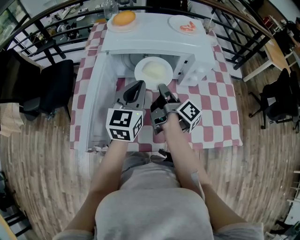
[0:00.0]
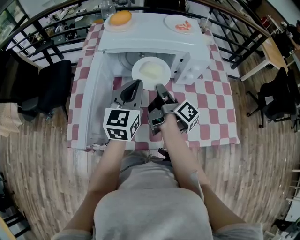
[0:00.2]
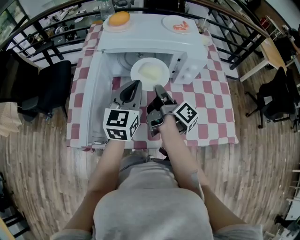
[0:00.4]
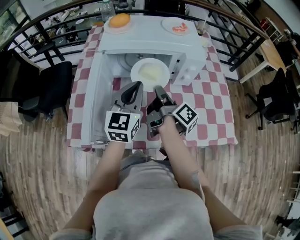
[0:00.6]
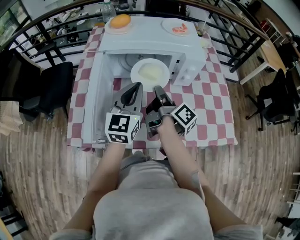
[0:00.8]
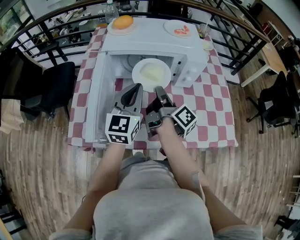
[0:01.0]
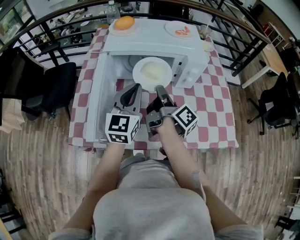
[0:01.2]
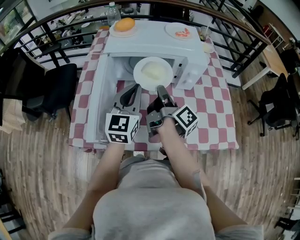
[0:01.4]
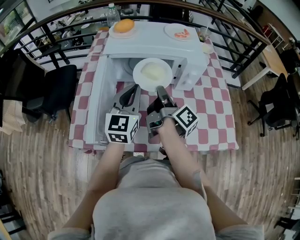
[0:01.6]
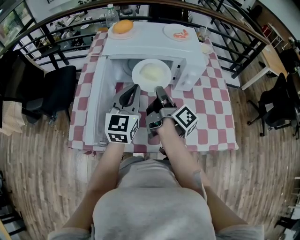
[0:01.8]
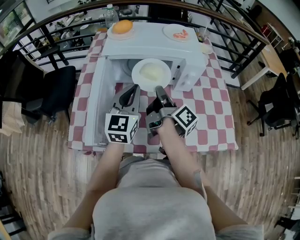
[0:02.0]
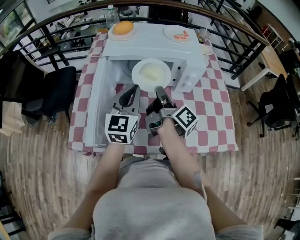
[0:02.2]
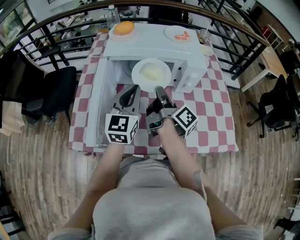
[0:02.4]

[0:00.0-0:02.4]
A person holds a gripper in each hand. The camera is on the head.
0:00.0 to 0:01.2: The right gripper ends up roughly 5 cm from where it was.
0:01.2 to 0:02.4: There are only small adjustments of the grippers.

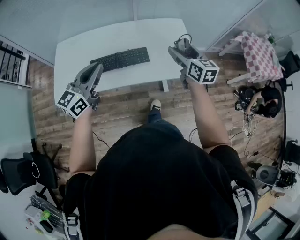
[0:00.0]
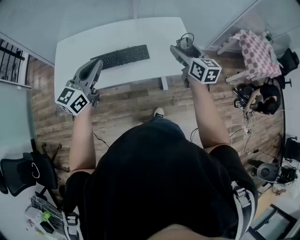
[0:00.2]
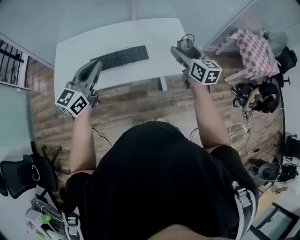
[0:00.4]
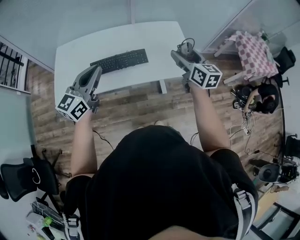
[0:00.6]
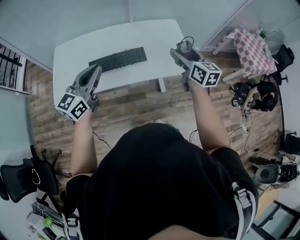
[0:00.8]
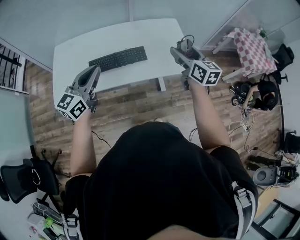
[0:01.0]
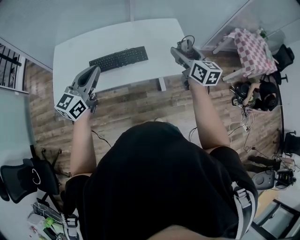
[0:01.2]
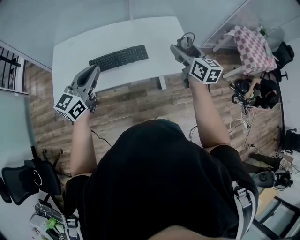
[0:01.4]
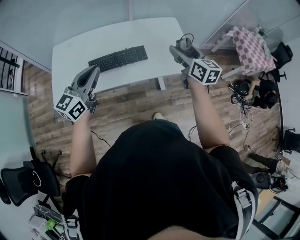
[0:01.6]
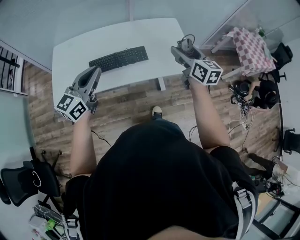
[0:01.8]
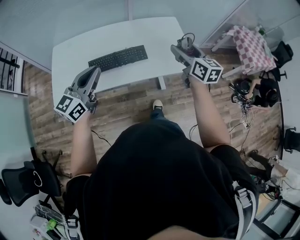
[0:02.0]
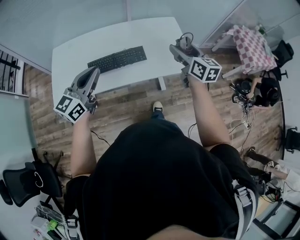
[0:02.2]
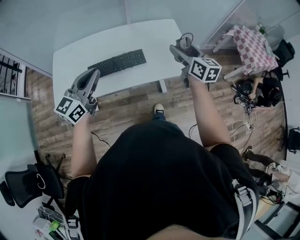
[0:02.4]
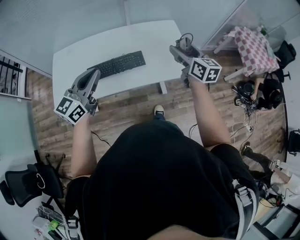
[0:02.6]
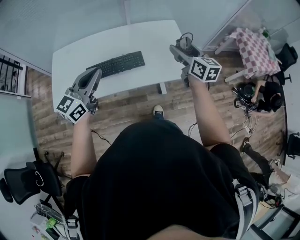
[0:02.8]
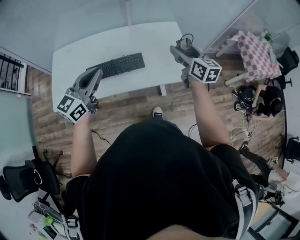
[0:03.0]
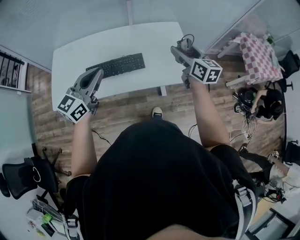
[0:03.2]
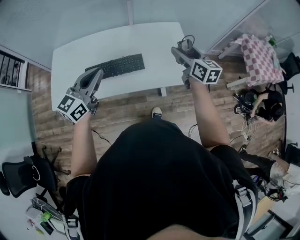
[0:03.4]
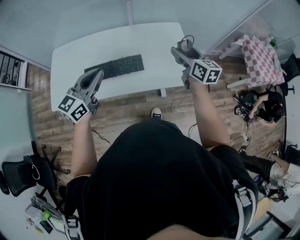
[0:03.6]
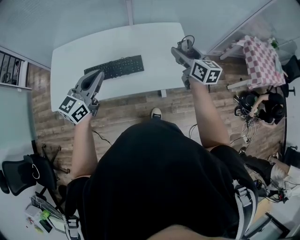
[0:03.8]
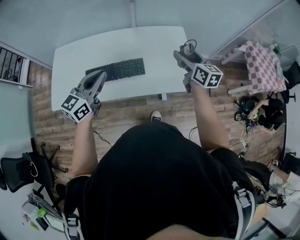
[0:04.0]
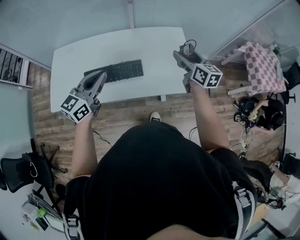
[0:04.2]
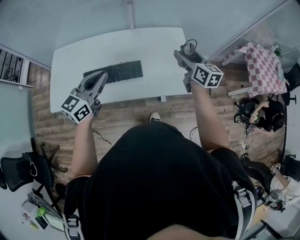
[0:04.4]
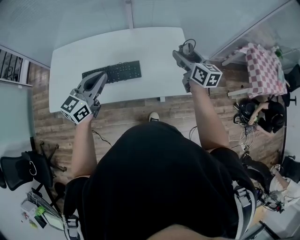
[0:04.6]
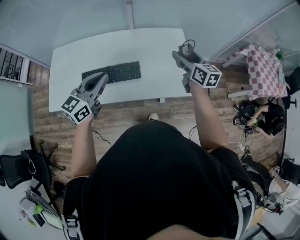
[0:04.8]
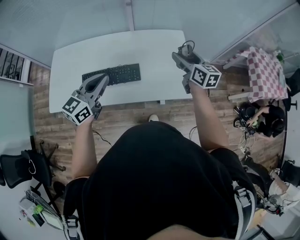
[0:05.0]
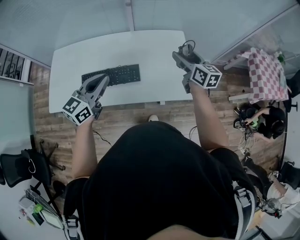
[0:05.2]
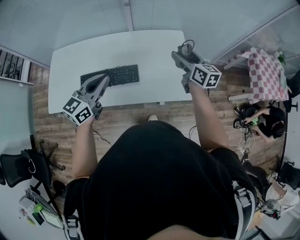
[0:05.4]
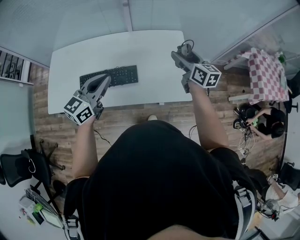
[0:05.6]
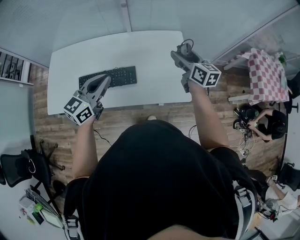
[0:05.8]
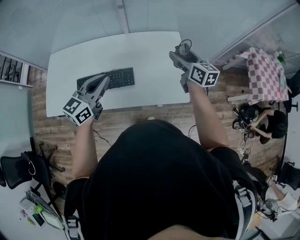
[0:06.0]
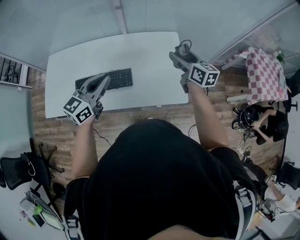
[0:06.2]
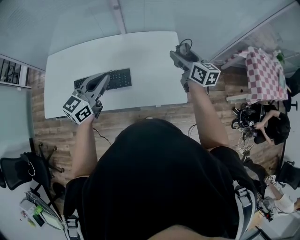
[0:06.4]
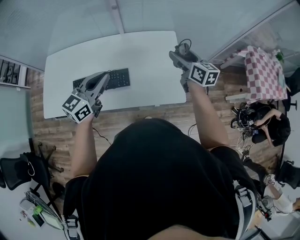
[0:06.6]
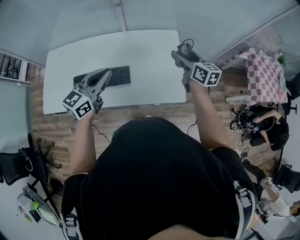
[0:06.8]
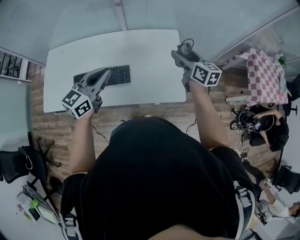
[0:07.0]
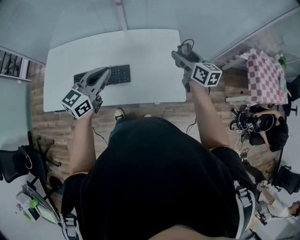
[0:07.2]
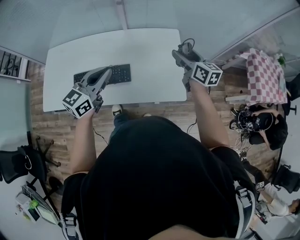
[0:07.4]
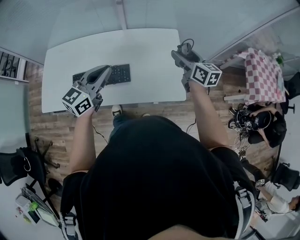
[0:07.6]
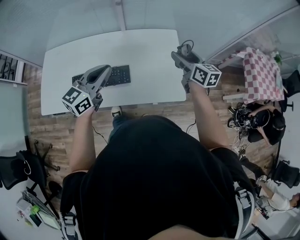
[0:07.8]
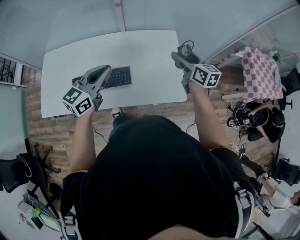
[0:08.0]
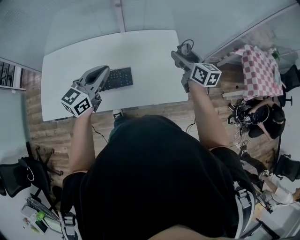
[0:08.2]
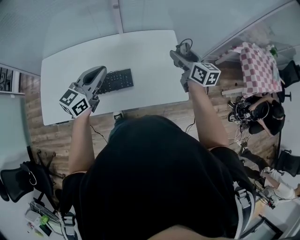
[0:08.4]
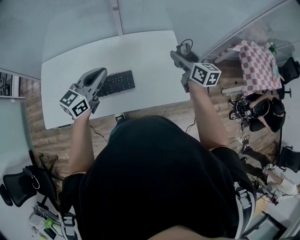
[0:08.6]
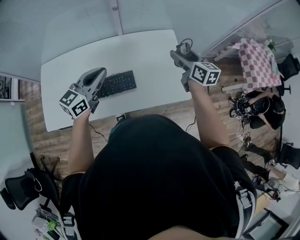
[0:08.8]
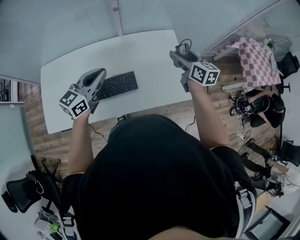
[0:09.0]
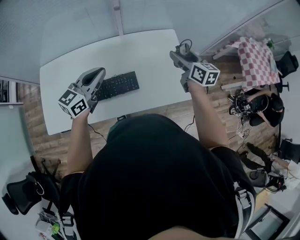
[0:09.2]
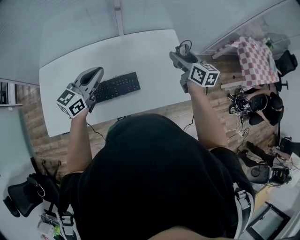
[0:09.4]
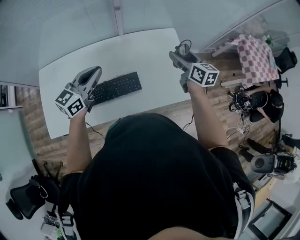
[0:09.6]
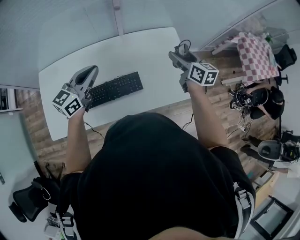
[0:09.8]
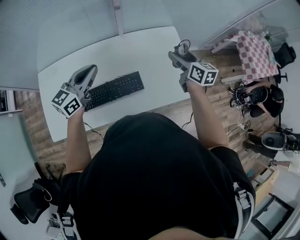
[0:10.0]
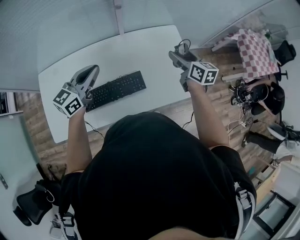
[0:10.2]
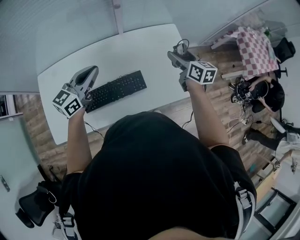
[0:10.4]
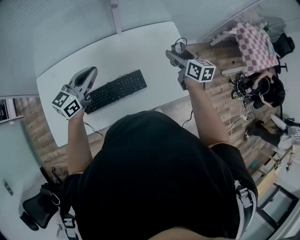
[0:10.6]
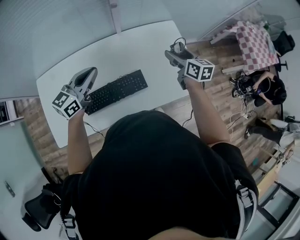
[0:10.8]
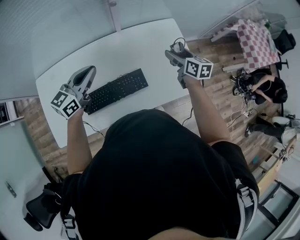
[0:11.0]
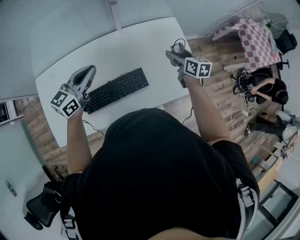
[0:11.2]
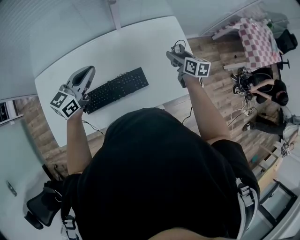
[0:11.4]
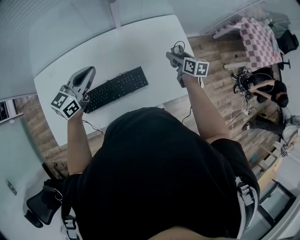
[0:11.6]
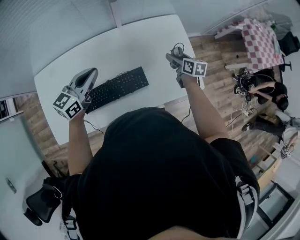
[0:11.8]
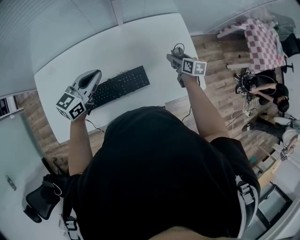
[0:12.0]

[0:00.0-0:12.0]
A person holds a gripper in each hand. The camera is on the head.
0:00.0 to 0:01.6: The right gripper goes approximately 5 cm backward. Meanwhile the left gripper moves some 5 cm.
0:01.6 to 0:03.0: The right gripper goes roughly 10 cm forward and to the right, while the left gripper goes about 10 cm to the right and forward.
0:03.0 to 0:04.4: The left gripper is displaced forward and to the right by some 10 cm. Meanwhile the right gripper goes roughly 10 cm forward.
0:04.4 to 0:06.0: The left gripper shifts some 10 cm to the right and forward. The right gripper is displaced forward by about 10 cm.
0:06.0 to 0:07.6: The grippers move only a little.
0:07.6 to 0:09.0: The left gripper heads to the left and forward, covering about 10 cm, while the right gripper shifts some 5 cm to the left.
0:09.0 to 0:10.4: The right gripper moves to the left, roughly 5 cm. Meanwhile the left gripper goes approximately 10 cm to the left and forward.
0:10.4 to 0:12.0: The left gripper goes some 5 cm downward. The right gripper is displaced downward by approximately 20 cm, and rotates roughly 20 degrees.

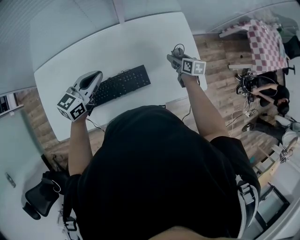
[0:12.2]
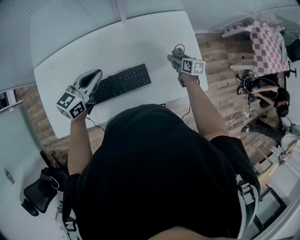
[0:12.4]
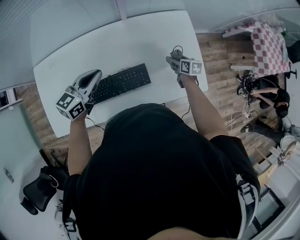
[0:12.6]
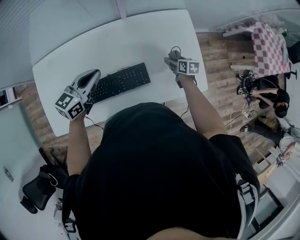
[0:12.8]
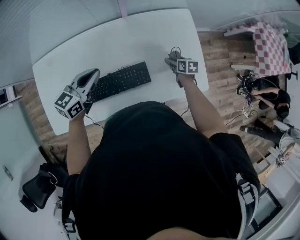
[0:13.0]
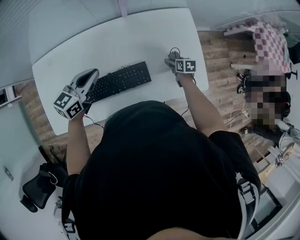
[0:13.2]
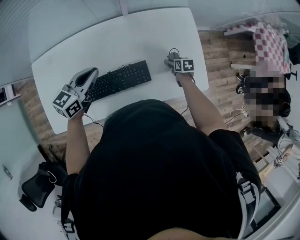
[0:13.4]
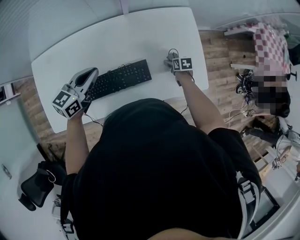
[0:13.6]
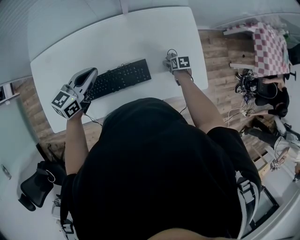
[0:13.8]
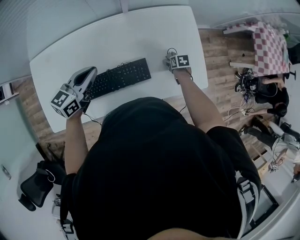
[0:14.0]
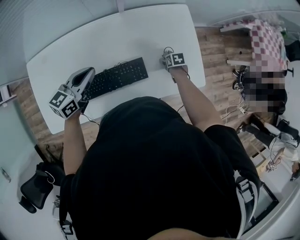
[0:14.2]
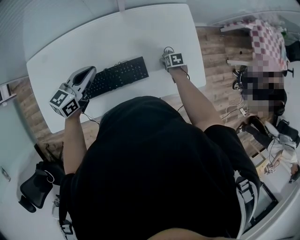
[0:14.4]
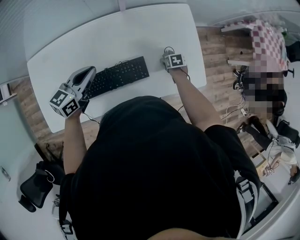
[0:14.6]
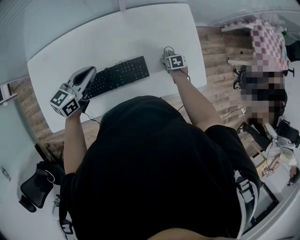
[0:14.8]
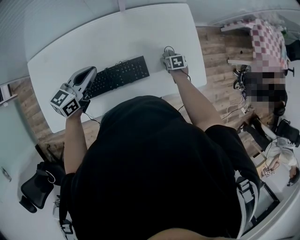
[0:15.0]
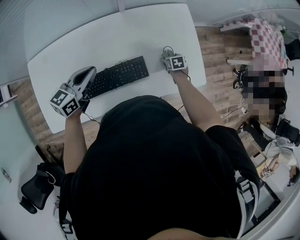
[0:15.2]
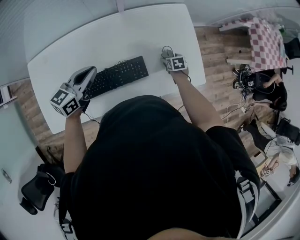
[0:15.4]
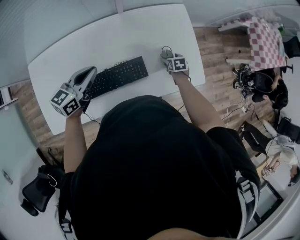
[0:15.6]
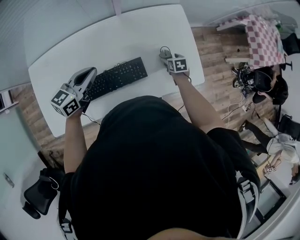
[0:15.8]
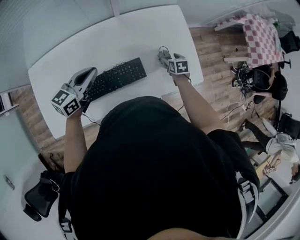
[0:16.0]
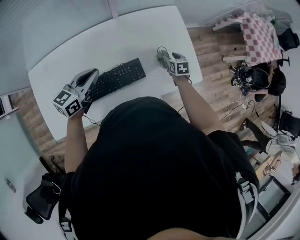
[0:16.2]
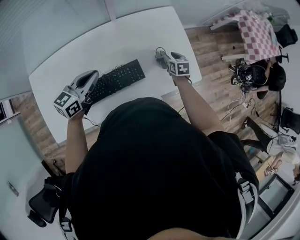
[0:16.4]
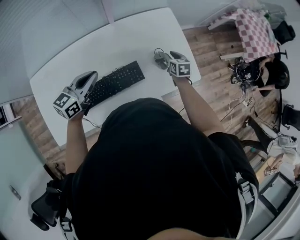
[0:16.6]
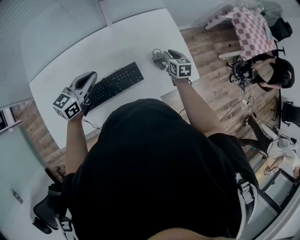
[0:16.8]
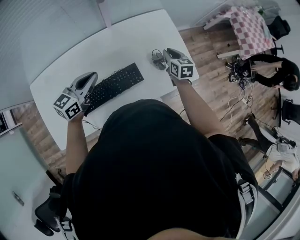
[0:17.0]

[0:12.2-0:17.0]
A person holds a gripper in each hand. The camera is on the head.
0:12.2 to 0:13.8: The right gripper moves downward, about 15 cm, and rotates roughly 30 degrees.
0:13.8 to 0:15.4: The grippers move only a little.
0:15.4 to 0:17.0: The right gripper moves upward, approximately 20 cm, turns by roughly 30 degrees, and closes its fingers. The left gripper shifts by some 5 cm.

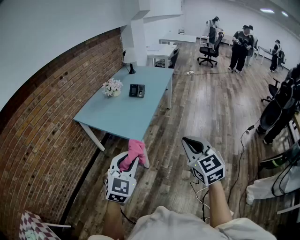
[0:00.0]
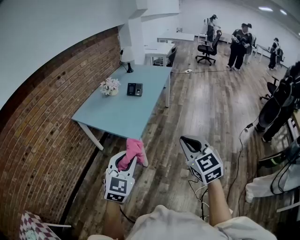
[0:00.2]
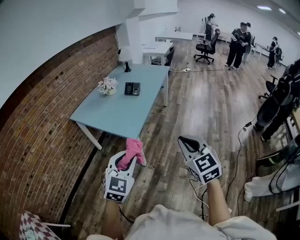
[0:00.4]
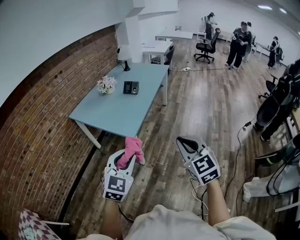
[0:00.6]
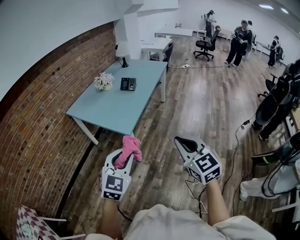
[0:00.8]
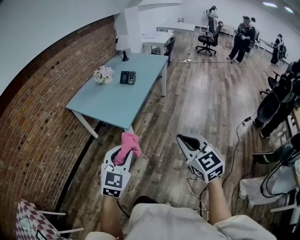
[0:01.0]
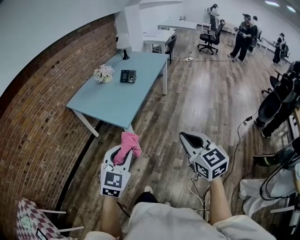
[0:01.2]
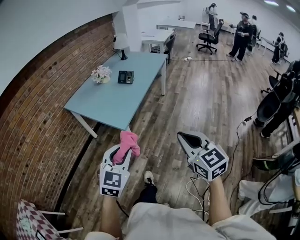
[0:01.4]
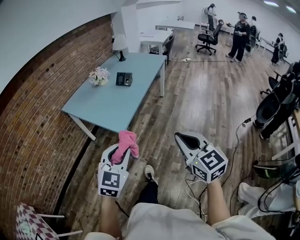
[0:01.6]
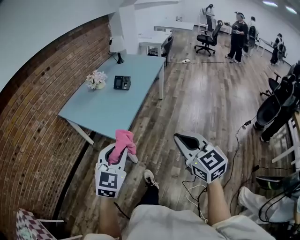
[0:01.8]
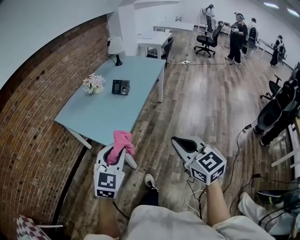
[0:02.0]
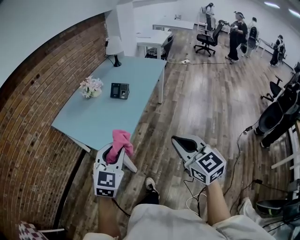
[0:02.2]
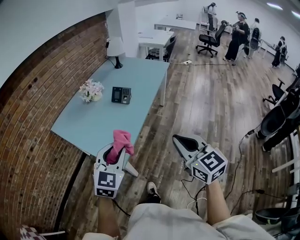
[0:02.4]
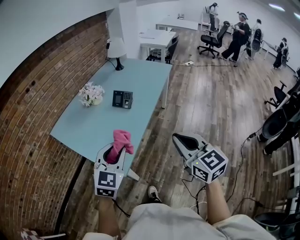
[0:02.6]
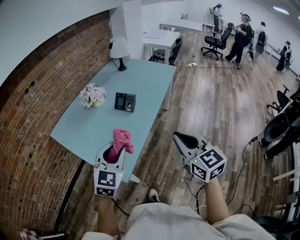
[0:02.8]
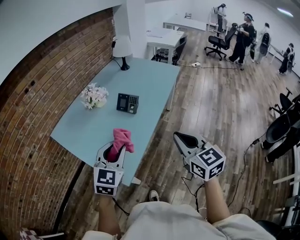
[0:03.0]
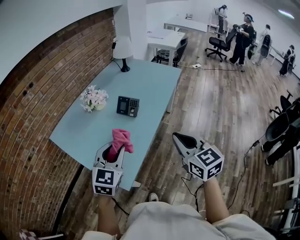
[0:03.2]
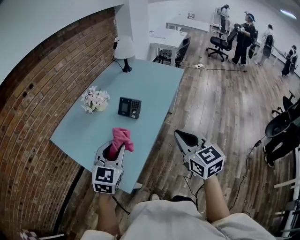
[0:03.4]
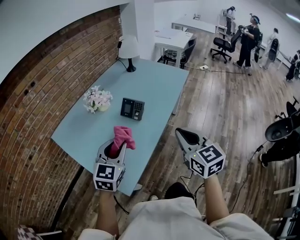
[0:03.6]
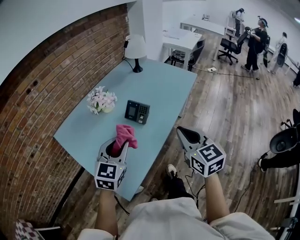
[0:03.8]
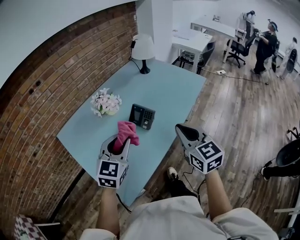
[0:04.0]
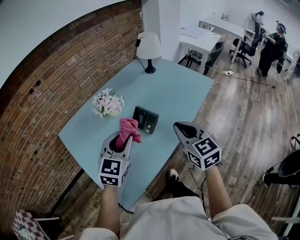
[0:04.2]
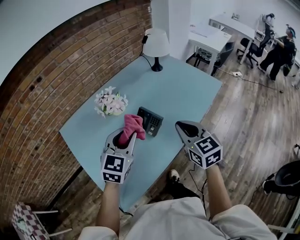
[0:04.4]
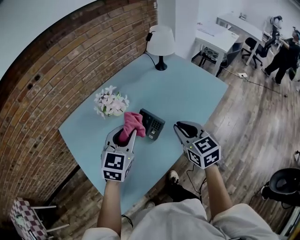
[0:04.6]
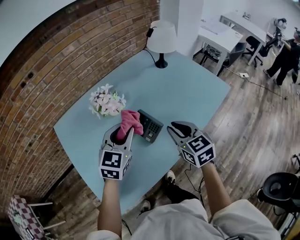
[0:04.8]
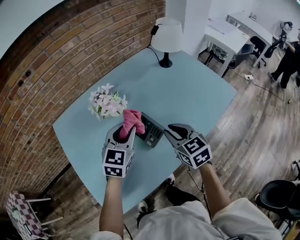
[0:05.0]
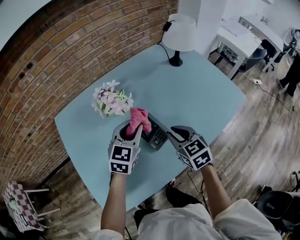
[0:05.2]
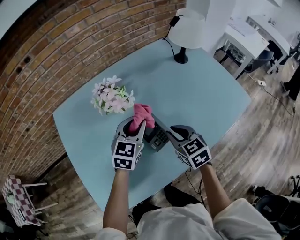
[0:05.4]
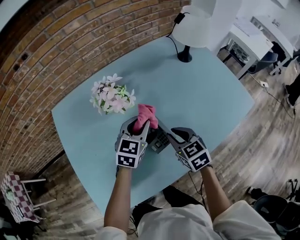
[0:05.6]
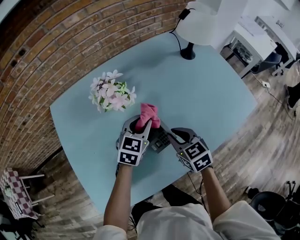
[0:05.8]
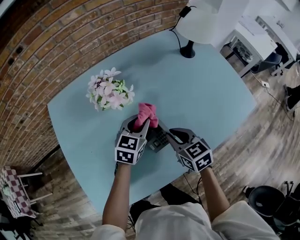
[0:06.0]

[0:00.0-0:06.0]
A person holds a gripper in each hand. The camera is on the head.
0:00.0 to 0:01.6: The grippers both shift to the right by about 10 cm.
0:01.6 to 0:03.0: Both grippers travel together forward, roughly 40 cm.
0:03.0 to 0:04.4: Both grippers travel together forward, approximately 30 cm.
0:04.4 to 0:06.0: The grippers both shift downward and forward by some 25 cm. The left gripper turns by about 30 degrees. Meanwhile the right gripper turns by some 30 degrees.
